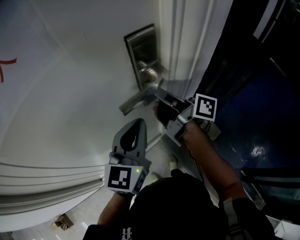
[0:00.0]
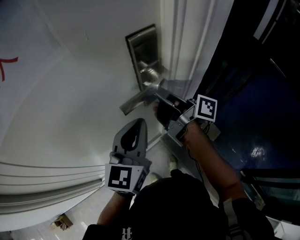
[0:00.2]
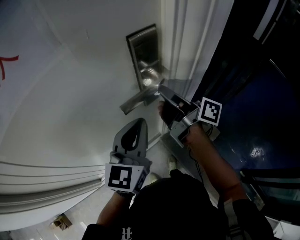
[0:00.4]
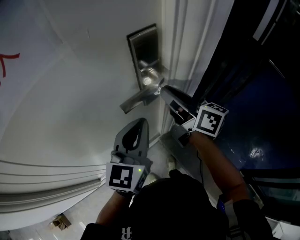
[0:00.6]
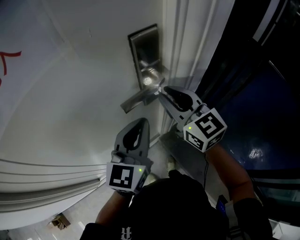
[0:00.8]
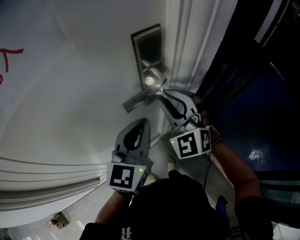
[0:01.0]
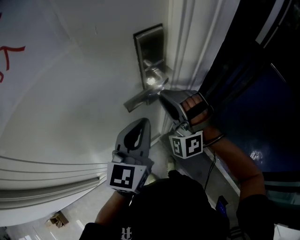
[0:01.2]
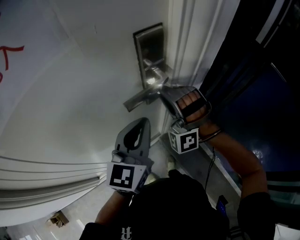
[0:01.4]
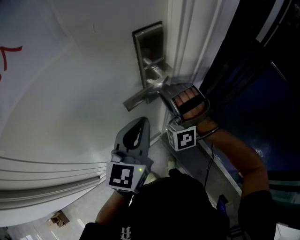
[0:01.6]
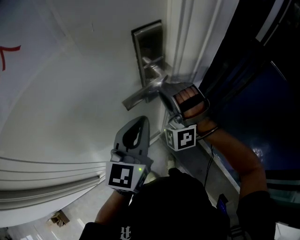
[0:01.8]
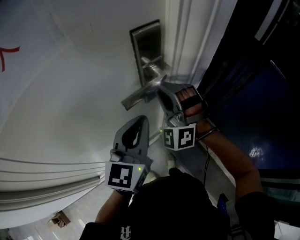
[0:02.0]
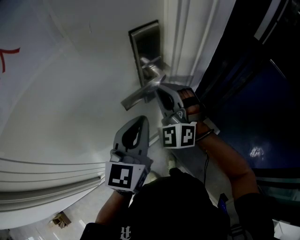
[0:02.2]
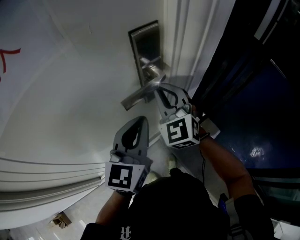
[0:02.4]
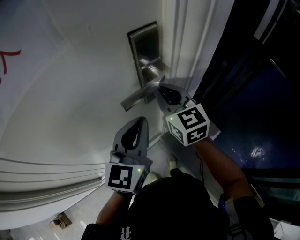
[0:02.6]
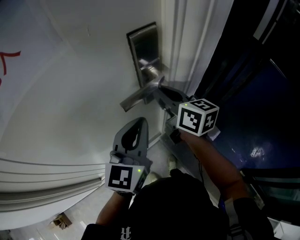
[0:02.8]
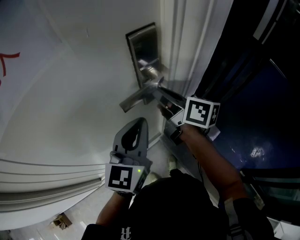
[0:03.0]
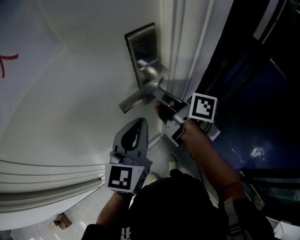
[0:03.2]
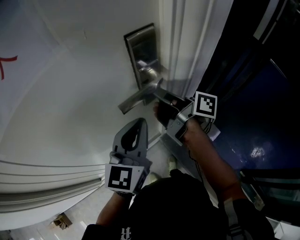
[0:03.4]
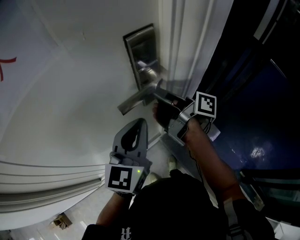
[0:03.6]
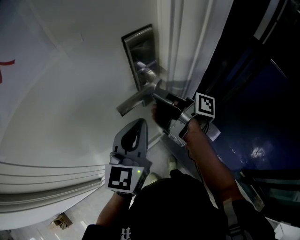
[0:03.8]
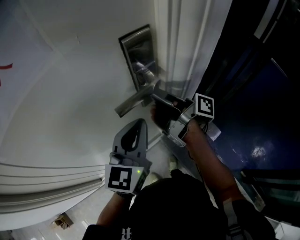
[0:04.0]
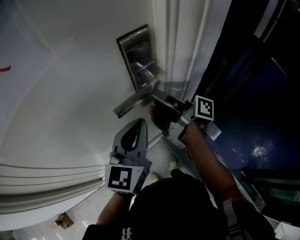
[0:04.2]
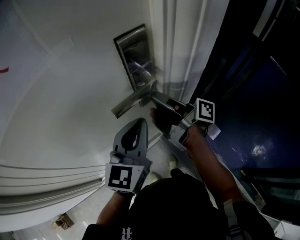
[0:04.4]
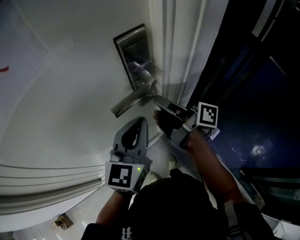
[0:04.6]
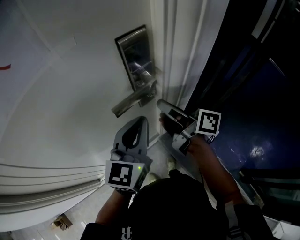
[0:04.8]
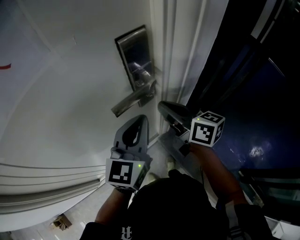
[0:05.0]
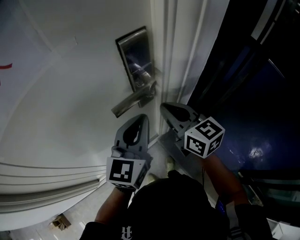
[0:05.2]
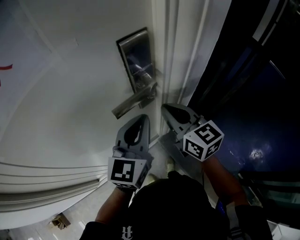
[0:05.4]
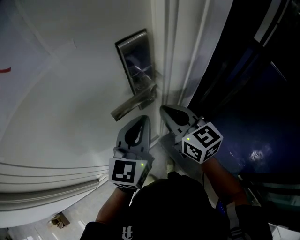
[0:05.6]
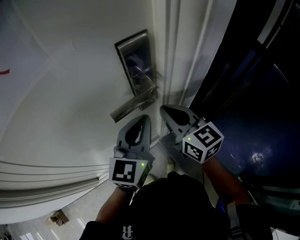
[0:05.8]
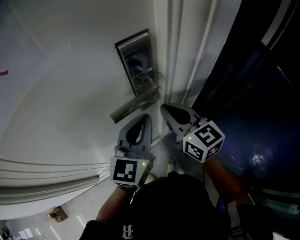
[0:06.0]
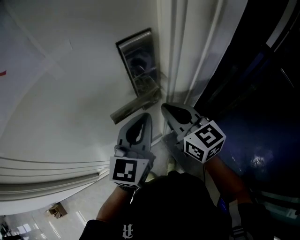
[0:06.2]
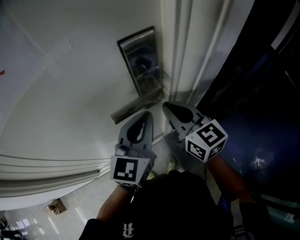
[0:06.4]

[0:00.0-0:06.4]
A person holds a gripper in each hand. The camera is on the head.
0:00.0 to 0:01.6: The right gripper rotates some 170 degrees.
0:01.6 to 0:03.2: The right gripper rolls clockwise, seen from behind, by some 160 degrees.
0:04.8 to 0:06.4: The right gripper twists some 50 degrees counterclockwise, seen from behind.

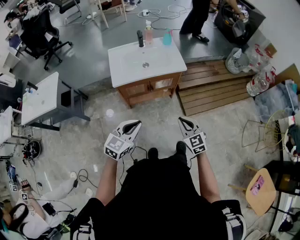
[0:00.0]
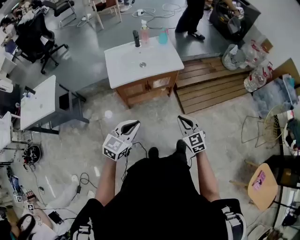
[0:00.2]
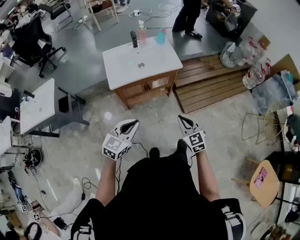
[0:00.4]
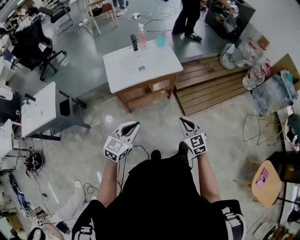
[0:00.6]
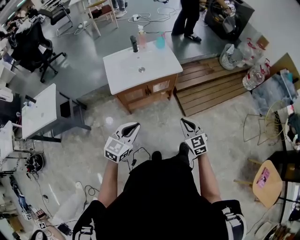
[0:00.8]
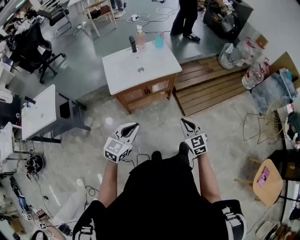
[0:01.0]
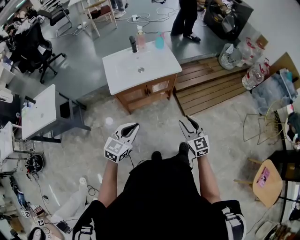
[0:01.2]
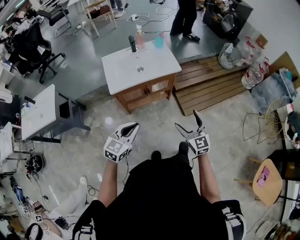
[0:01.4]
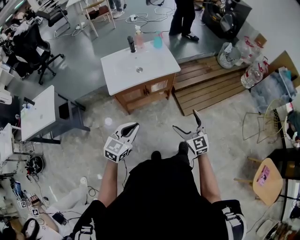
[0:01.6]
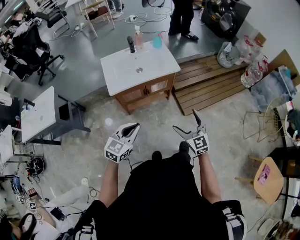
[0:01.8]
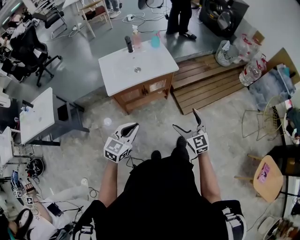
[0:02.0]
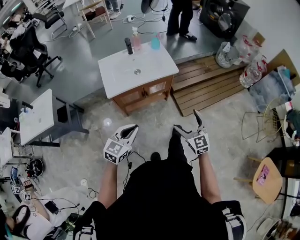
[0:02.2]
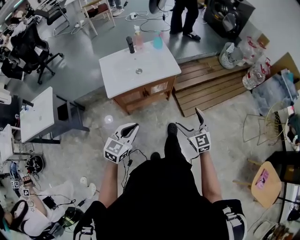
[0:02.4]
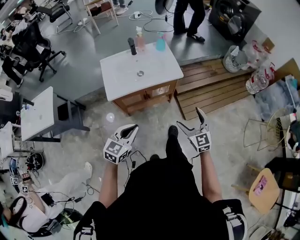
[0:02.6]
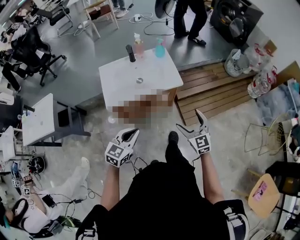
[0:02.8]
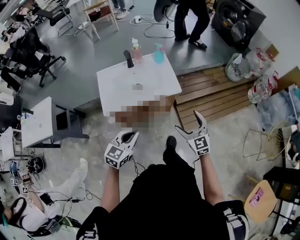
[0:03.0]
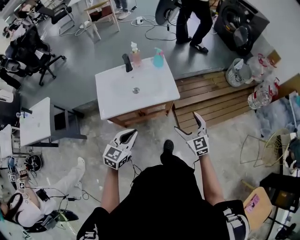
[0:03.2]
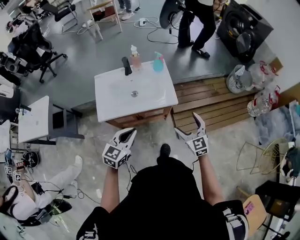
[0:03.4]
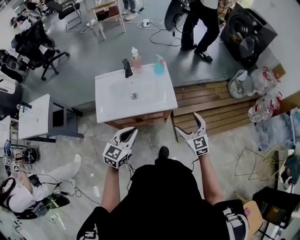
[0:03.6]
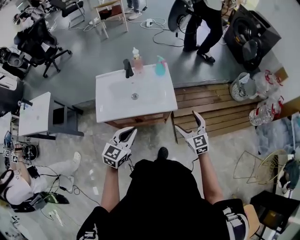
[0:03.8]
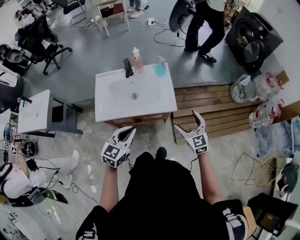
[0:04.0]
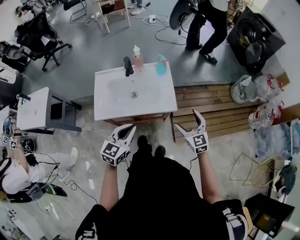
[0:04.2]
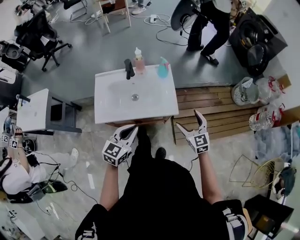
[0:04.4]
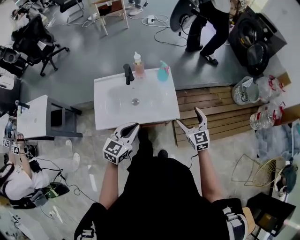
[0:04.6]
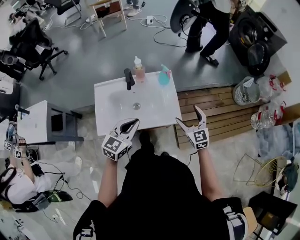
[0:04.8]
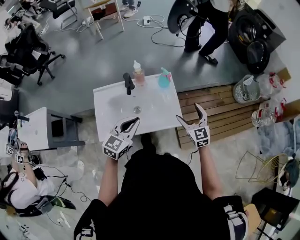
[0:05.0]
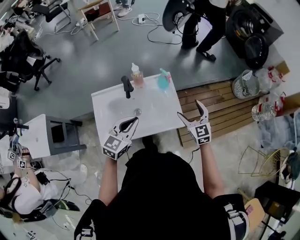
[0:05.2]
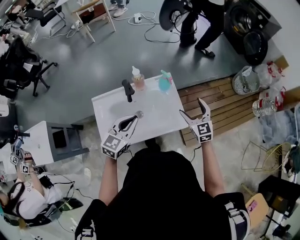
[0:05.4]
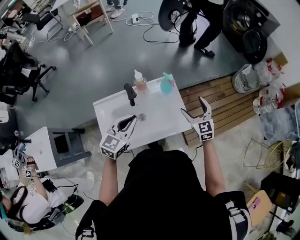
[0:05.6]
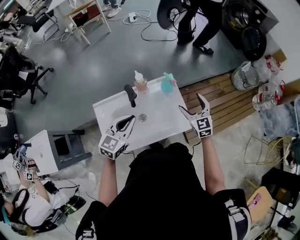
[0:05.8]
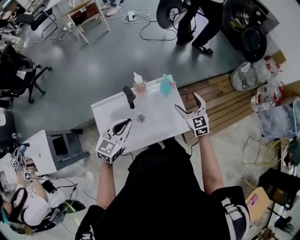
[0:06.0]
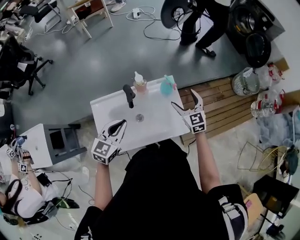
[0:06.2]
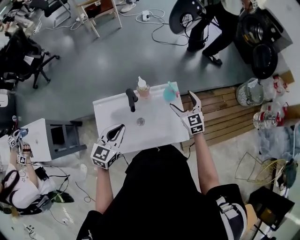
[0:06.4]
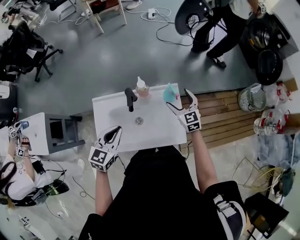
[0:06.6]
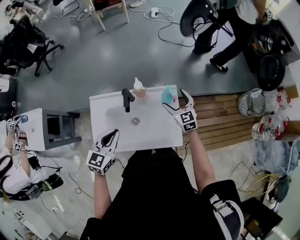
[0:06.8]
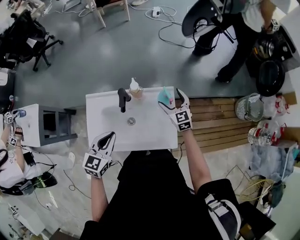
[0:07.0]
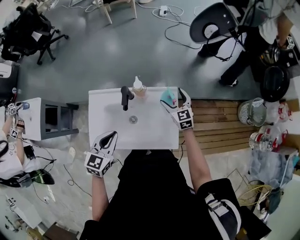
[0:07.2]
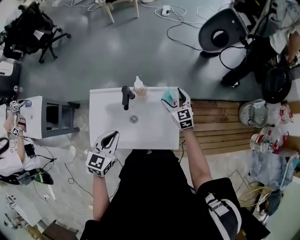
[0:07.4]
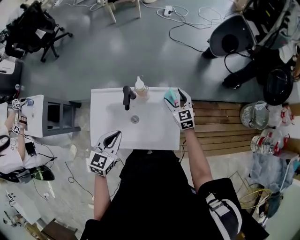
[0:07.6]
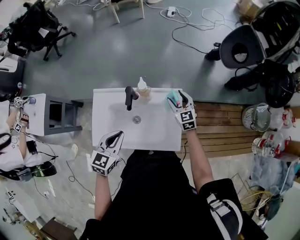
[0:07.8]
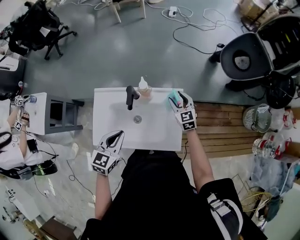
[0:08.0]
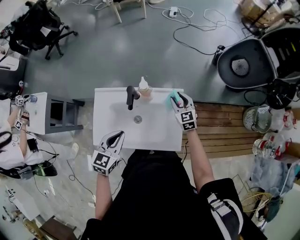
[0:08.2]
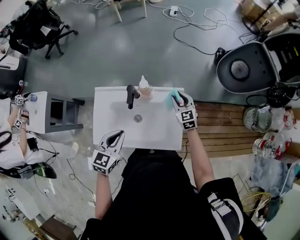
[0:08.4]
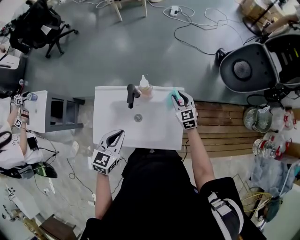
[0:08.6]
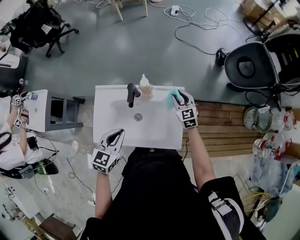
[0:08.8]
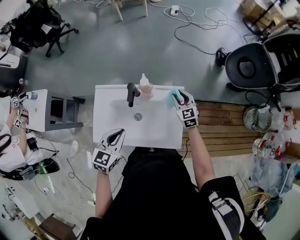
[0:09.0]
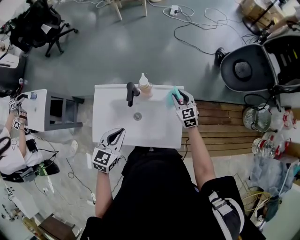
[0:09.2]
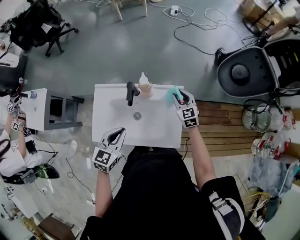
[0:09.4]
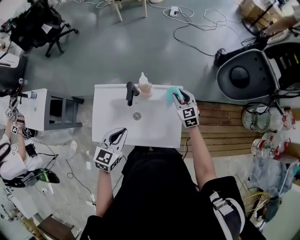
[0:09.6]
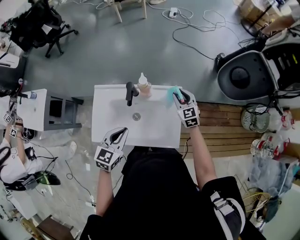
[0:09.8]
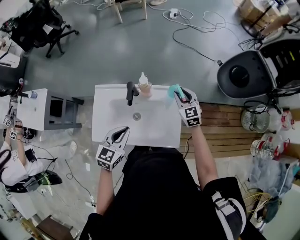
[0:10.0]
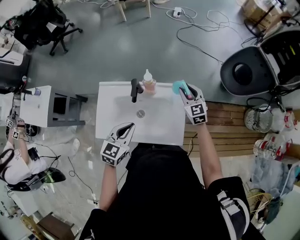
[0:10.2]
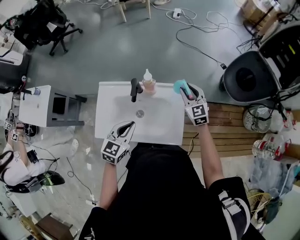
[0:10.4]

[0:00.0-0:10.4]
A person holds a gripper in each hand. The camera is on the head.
0:00.0 to 0:01.4: The right gripper opens its fingers.
0:01.4 to 0:03.0: Both grippers travel together forward, approximately 25 cm.
0:03.0 to 0:04.4: Both grippers move forward, about 20 cm.
0:04.4 to 0:06.0: The grippers both shift forward and to the left by approximately 30 cm.
0:06.0 to 0:07.4: The left gripper turns by approximately 30 degrees. Meanwhile the right gripper is displaced forward and downward by approximately 20 cm.
0:07.4 to 0:09.0: The right gripper closes up.
0:09.0 to 0:10.4: The right gripper is displaced upward by some 10 cm.

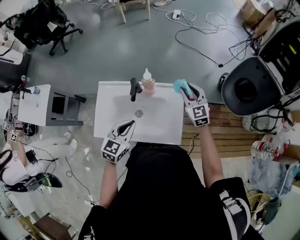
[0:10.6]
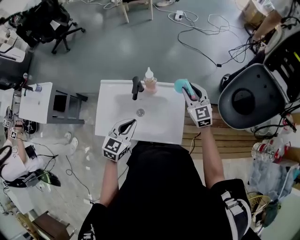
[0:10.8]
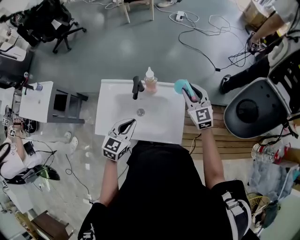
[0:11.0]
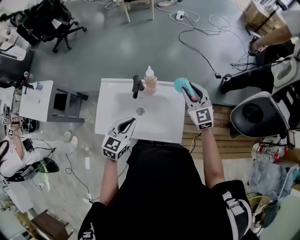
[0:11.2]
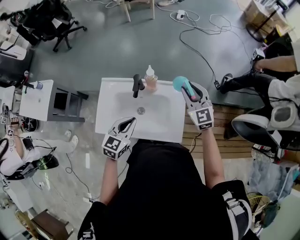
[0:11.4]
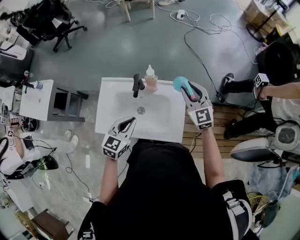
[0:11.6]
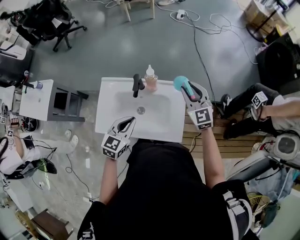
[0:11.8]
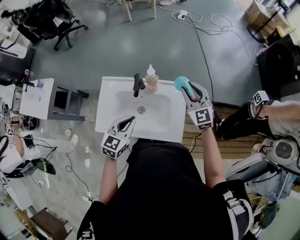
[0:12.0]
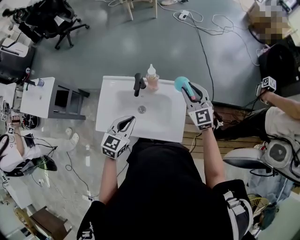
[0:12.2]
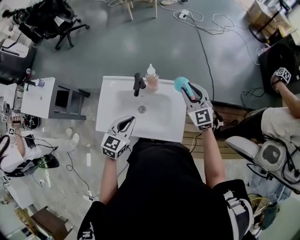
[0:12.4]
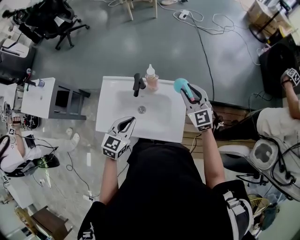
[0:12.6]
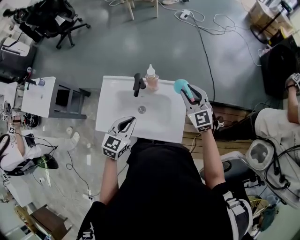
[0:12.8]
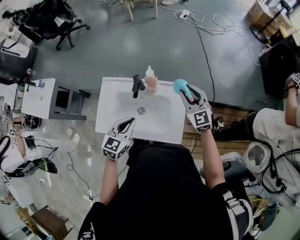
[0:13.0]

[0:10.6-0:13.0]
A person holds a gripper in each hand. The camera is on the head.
0:10.6 to 0:11.8: The right gripper moves upward, approximately 5 cm.
0:11.8 to 0:13.0: There are only small adjustments of the grippers.

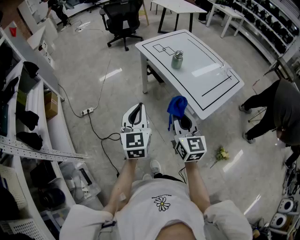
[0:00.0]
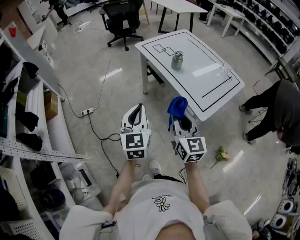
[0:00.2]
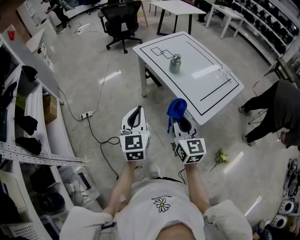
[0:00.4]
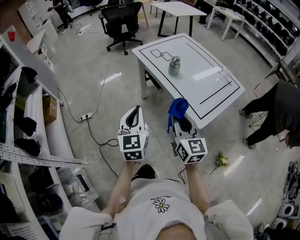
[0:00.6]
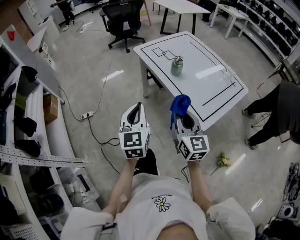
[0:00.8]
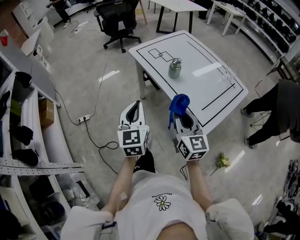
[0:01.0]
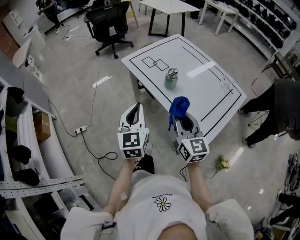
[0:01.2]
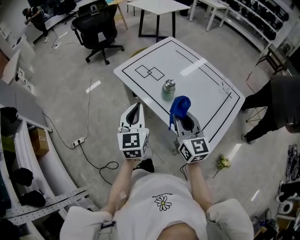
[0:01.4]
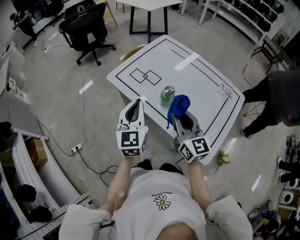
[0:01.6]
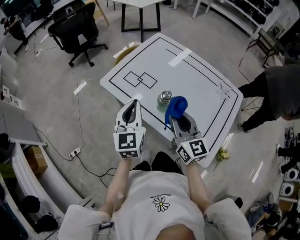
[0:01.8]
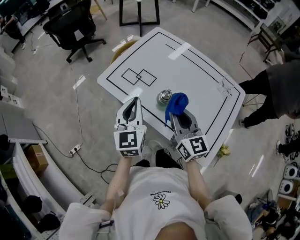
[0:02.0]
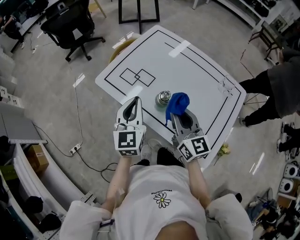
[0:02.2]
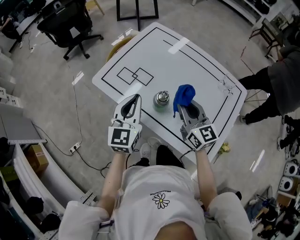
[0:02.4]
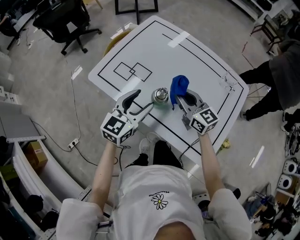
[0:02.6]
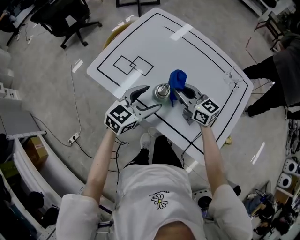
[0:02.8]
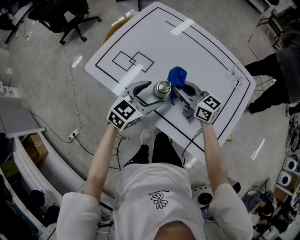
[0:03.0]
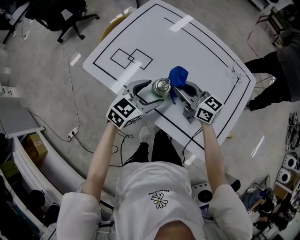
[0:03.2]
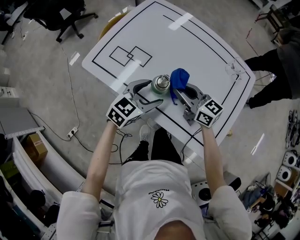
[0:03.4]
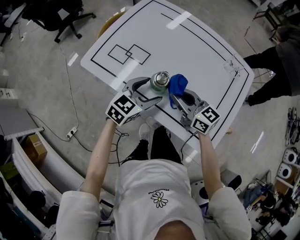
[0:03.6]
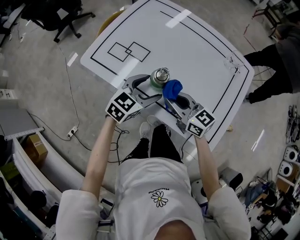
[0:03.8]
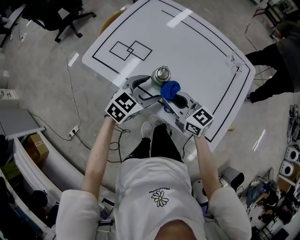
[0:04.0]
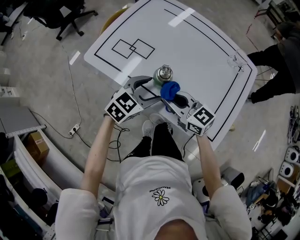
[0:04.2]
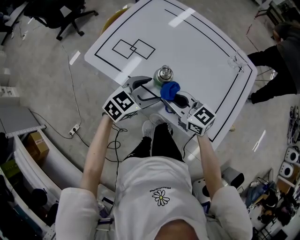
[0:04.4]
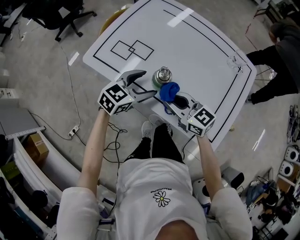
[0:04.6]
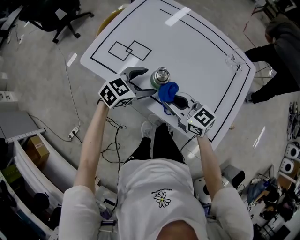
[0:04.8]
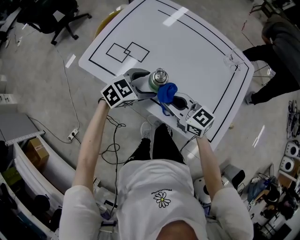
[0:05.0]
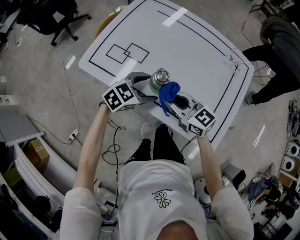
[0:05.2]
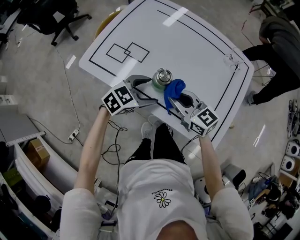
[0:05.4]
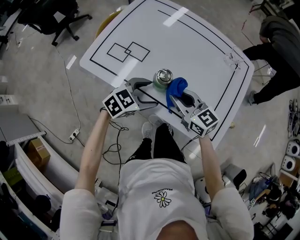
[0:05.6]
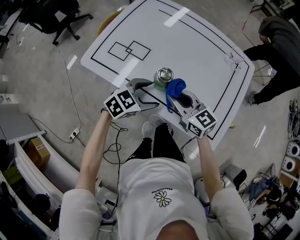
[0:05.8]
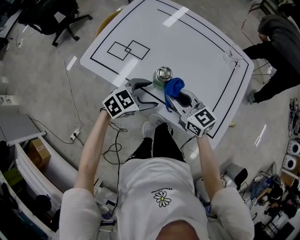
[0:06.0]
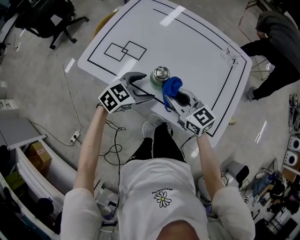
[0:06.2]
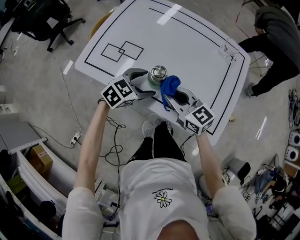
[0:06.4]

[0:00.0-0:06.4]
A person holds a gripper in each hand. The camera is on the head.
0:00.0 to 0:01.6: The two grippers go some 35 cm forward.
0:01.6 to 0:03.2: The right gripper heads forward and downward, covering roughly 20 cm, and rotates roughly 30 degrees. Meanwhile the left gripper shifts roughly 20 cm downward, to the right and forward, swivels some 50 degrees, and opens.
0:03.2 to 0:04.8: The right gripper travels backward by about 10 cm.
